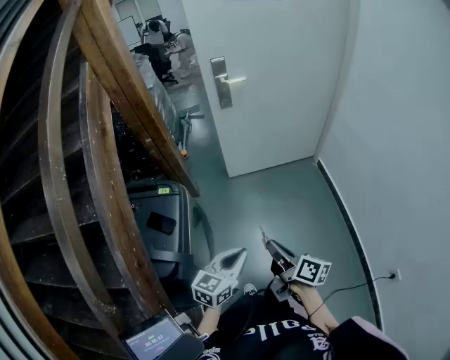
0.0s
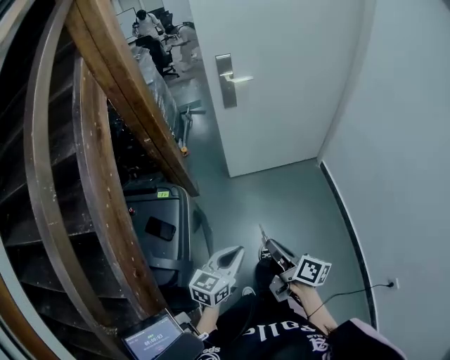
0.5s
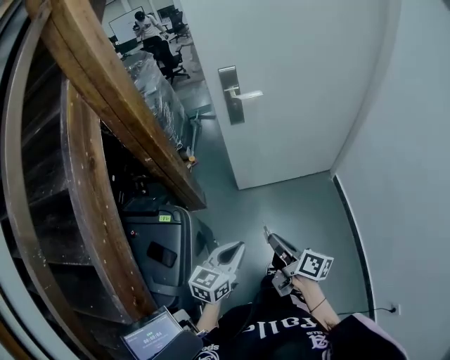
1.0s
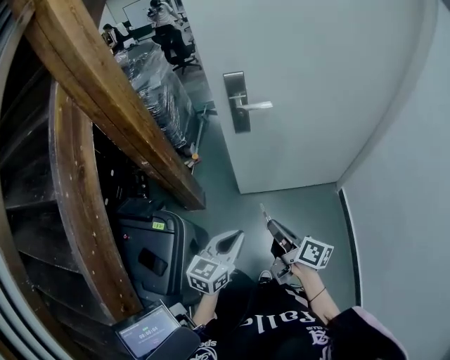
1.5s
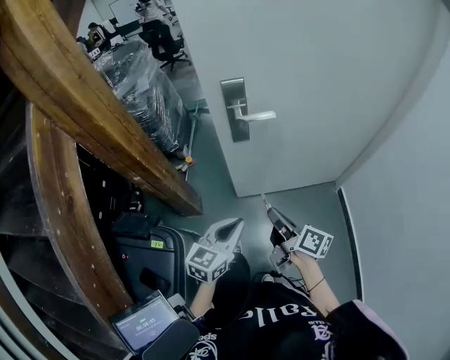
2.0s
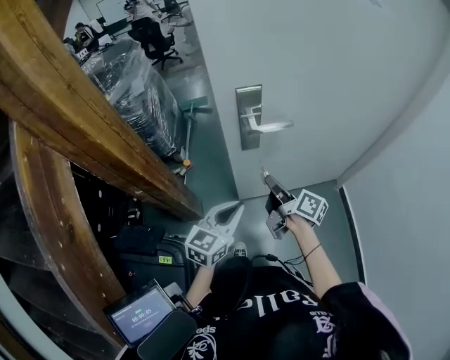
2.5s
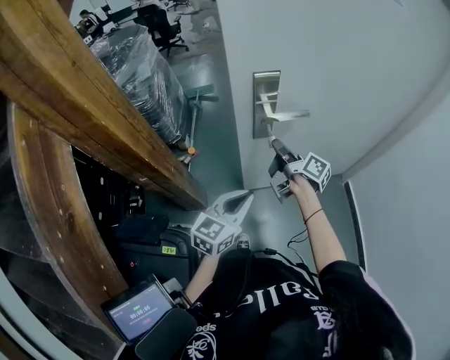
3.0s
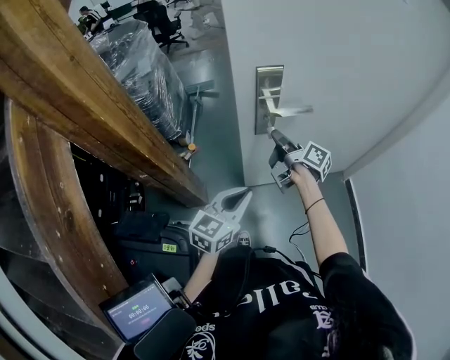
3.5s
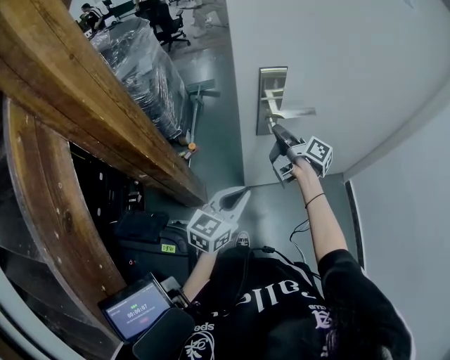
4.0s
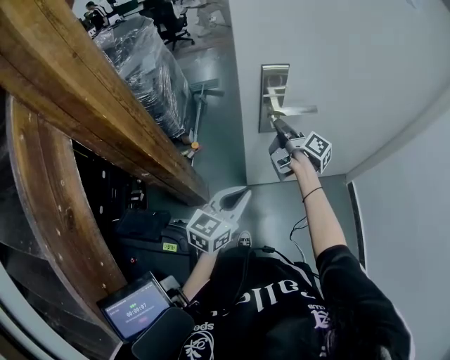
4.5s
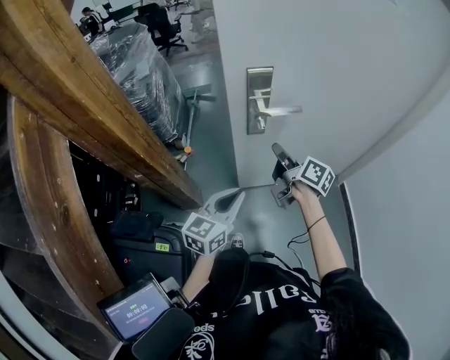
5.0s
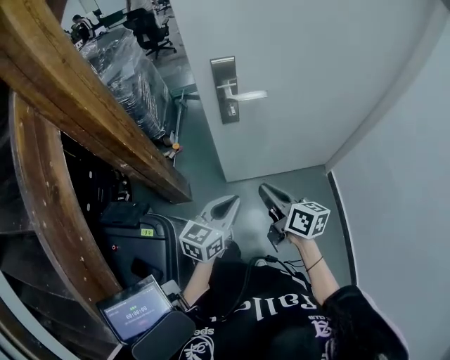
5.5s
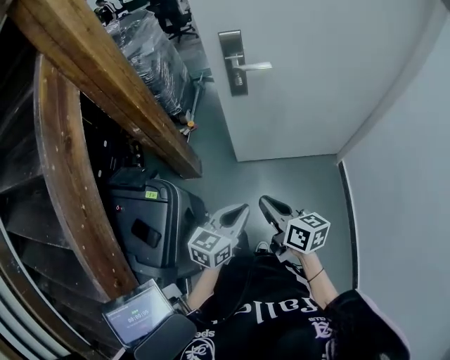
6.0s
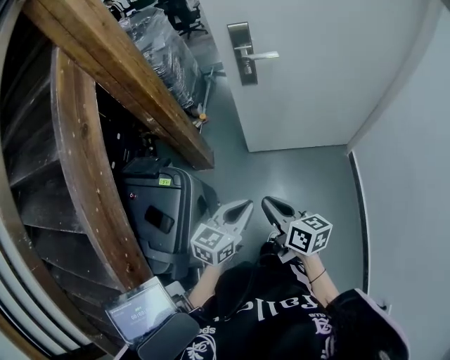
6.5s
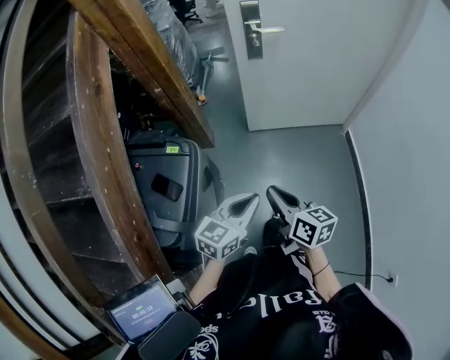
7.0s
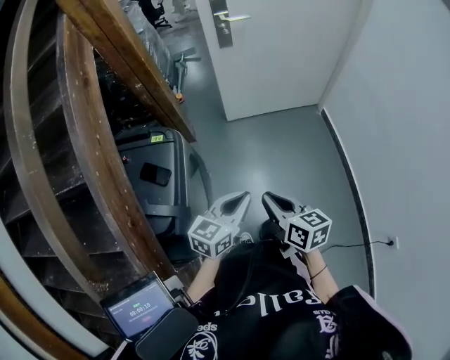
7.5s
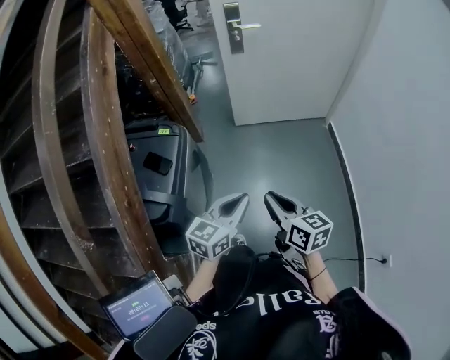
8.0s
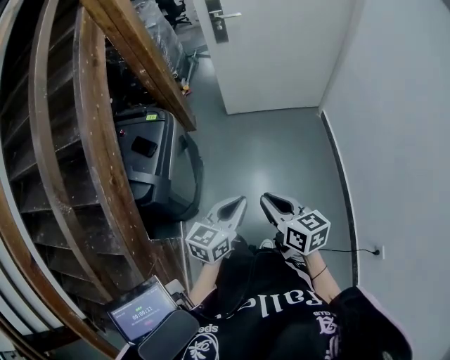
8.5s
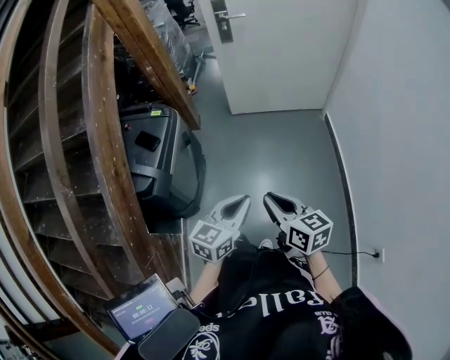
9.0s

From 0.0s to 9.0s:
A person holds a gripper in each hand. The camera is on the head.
From 0.0s to 2.0s: The two grippers travel together, forward, roughly 50 cm.
From 2.0s to 4.5s: The left gripper shifts approximately 15 cm forward and to the left. Meanwhile the right gripper goes approximately 30 cm forward, and swivels approximately 20 degrees.
From 4.5s to 7.0s: The pair of grippers is taken backward, roughly 50 cm. The right gripper rotates around the line of its fingers by some 40 degrees, counterclockwise from behind.
From 7.0s to 9.0s: Both grippers travel together backward and to the right, approximately 30 cm.

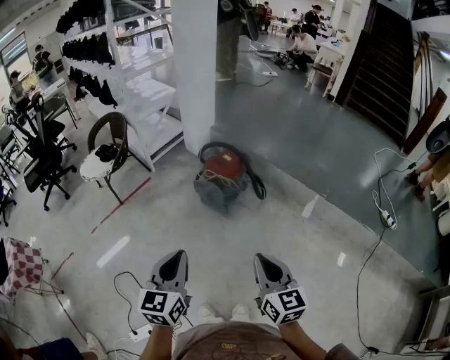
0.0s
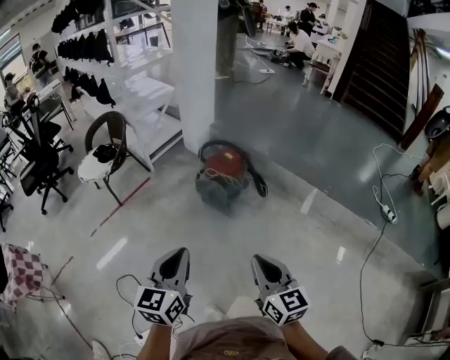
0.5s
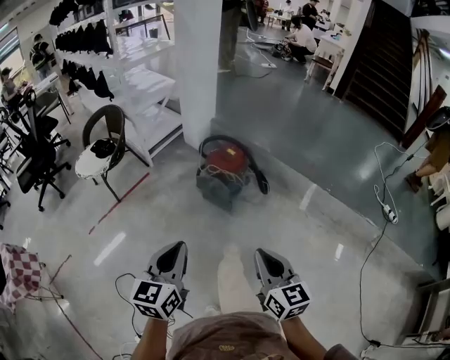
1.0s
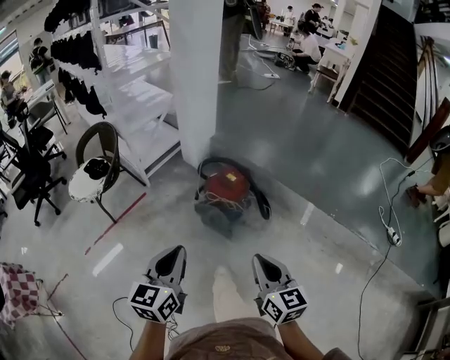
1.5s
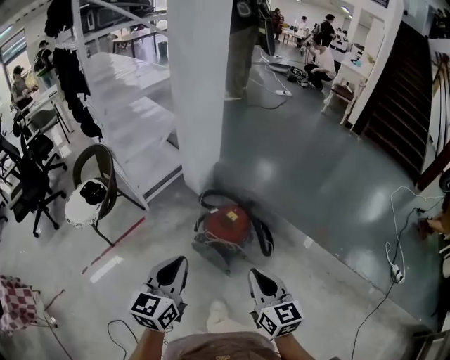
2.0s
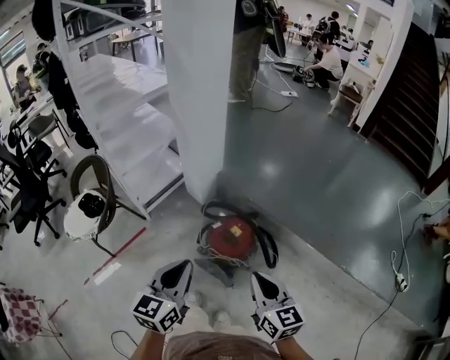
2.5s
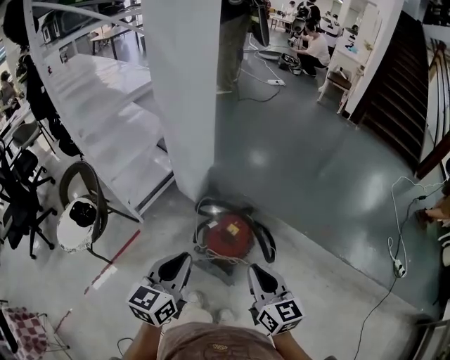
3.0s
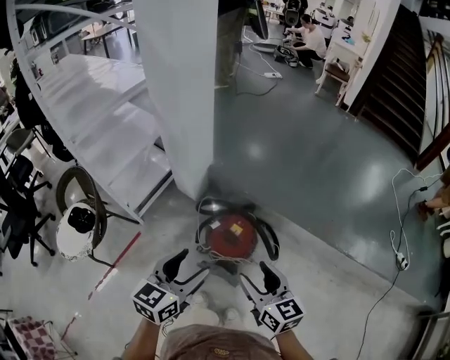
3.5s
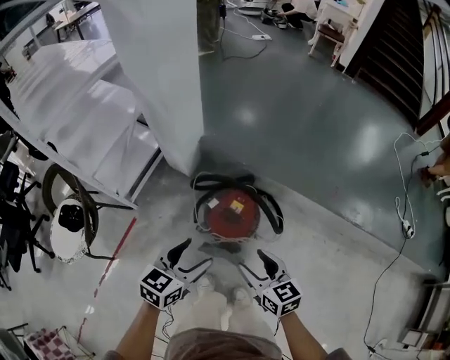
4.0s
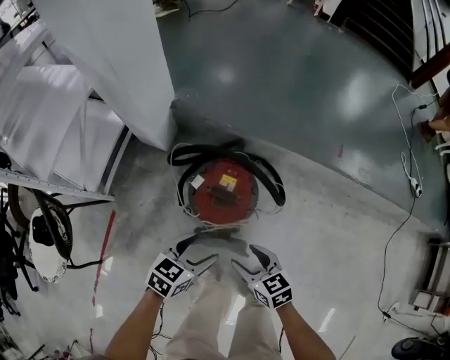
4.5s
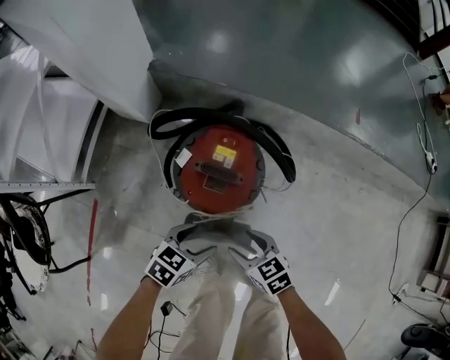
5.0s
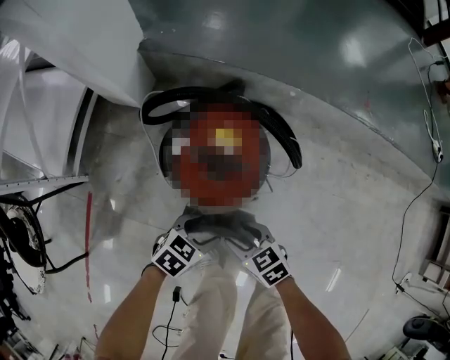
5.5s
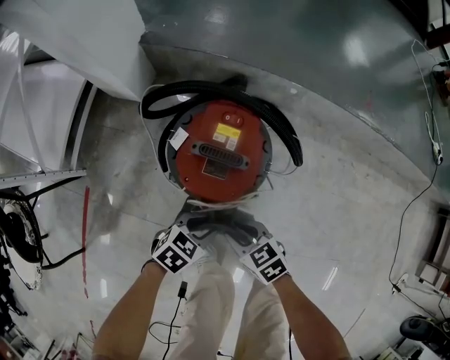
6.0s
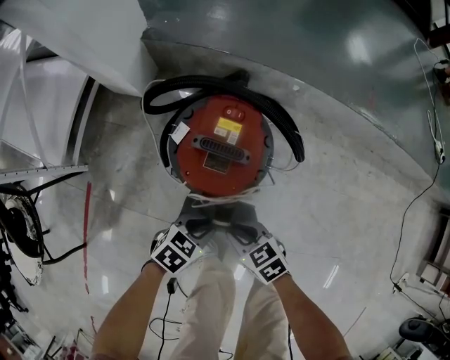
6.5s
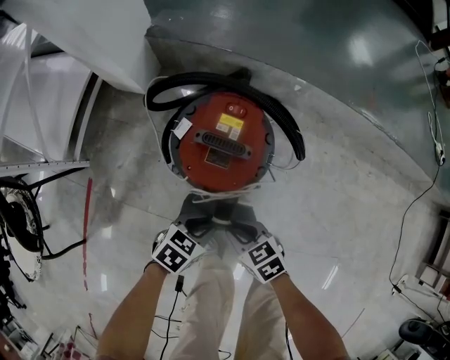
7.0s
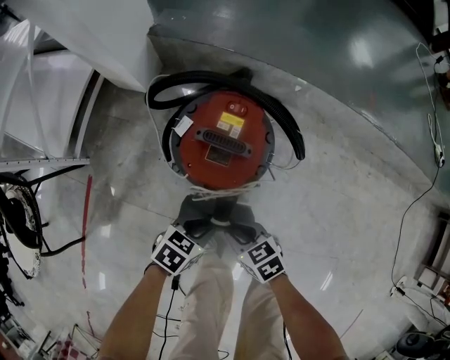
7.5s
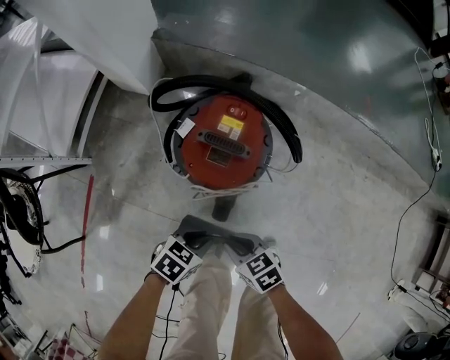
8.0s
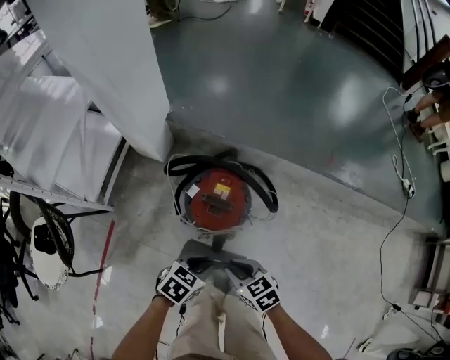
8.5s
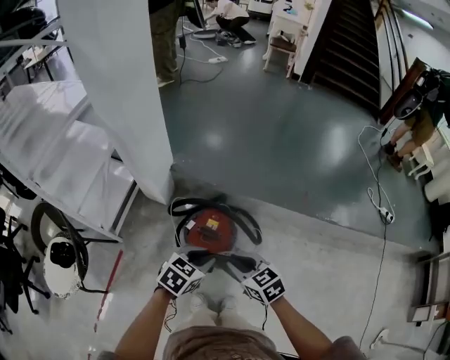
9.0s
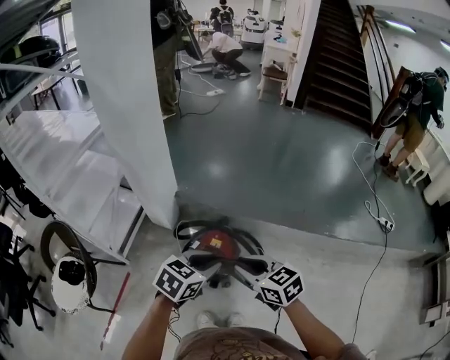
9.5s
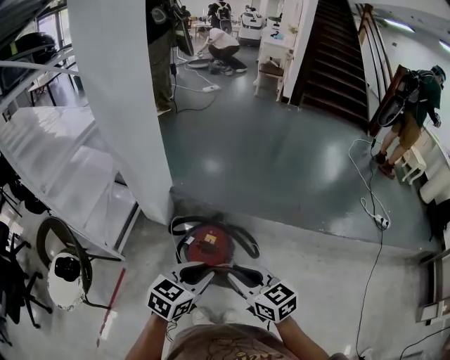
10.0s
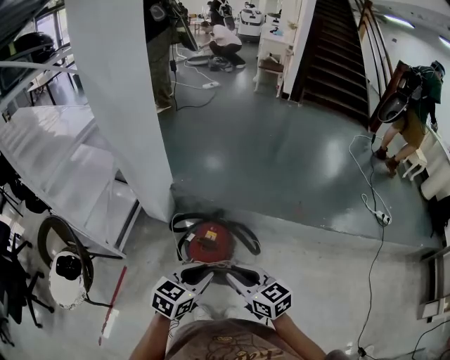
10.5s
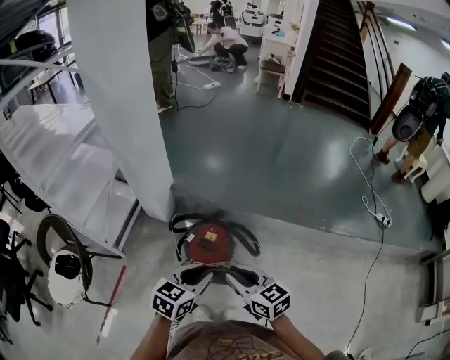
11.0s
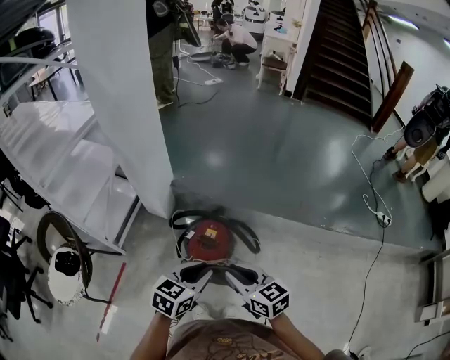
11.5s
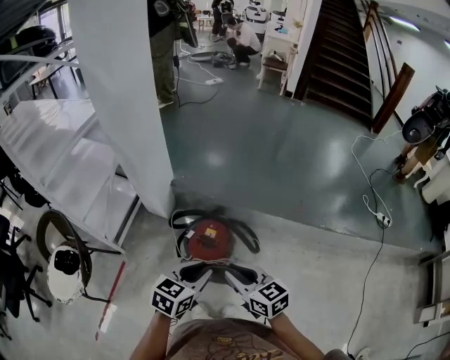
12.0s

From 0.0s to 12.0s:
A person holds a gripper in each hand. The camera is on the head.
From 0.0s to 2.0s: Both grippers move forward, roughly 40 cm.
From 2.0s to 4.0s: The right gripper moves forward, downward and to the left, roughly 25 cm, and opens up, while the left gripper shifts about 25 cm forward and downward, rotates some 40 degrees, and opens.
From 4.0s to 6.0s: The grippers both shift downward by approximately 40 cm. The right gripper changes its angle by some 30 degrees, and closes up; the left gripper changes its angle by approximately 40 degrees, and closes up.
From 6.0s to 8.0s: The right gripper ends up approximately 5 cm from where it was. The left gripper changes place by approximately 5 cm.
From 8.0s to 10.0s: The two grippers go about 50 cm upward. The right gripper swivels some 40 degrees. The left gripper swivels some 40 degrees.
From 10.0s to 12.0s: The grippers make only small movements.

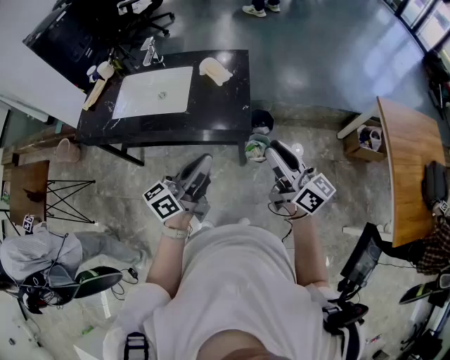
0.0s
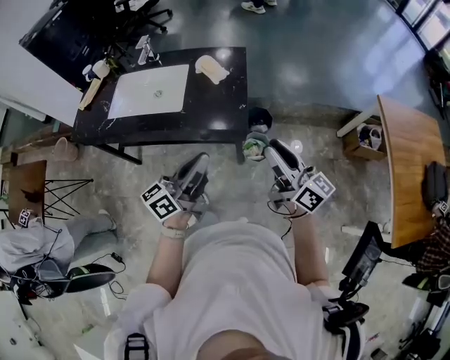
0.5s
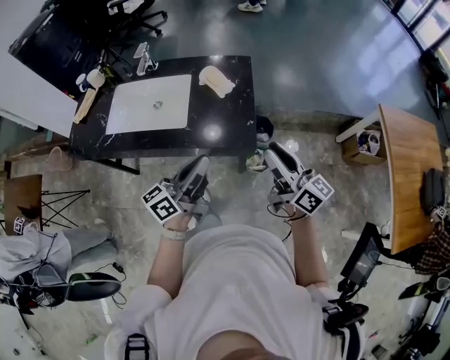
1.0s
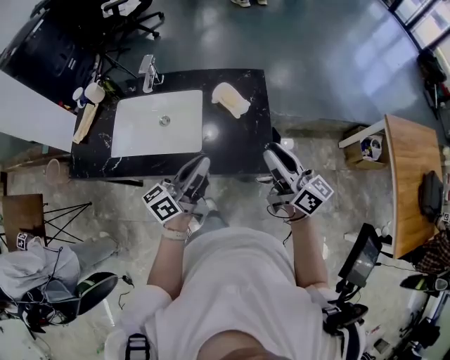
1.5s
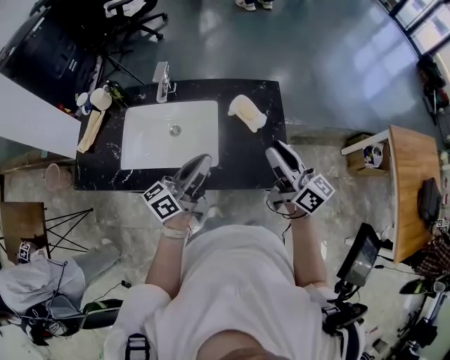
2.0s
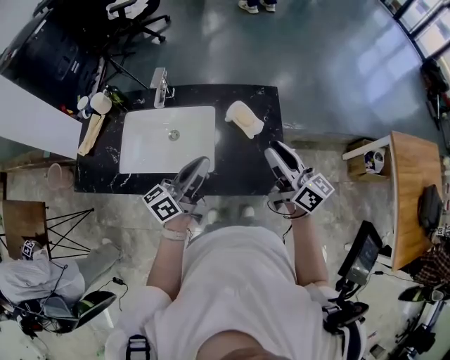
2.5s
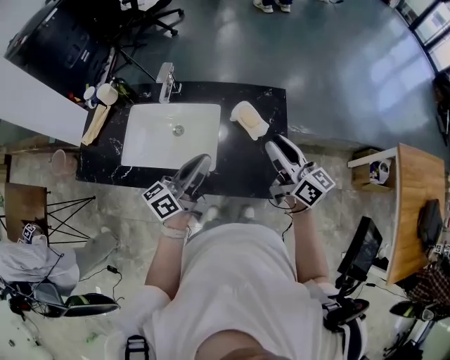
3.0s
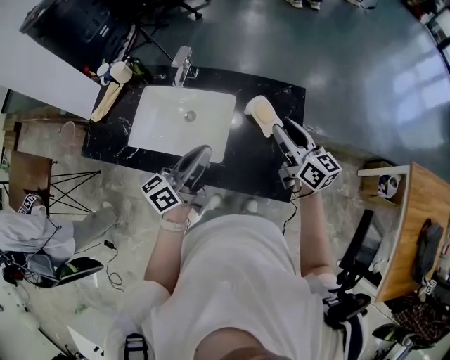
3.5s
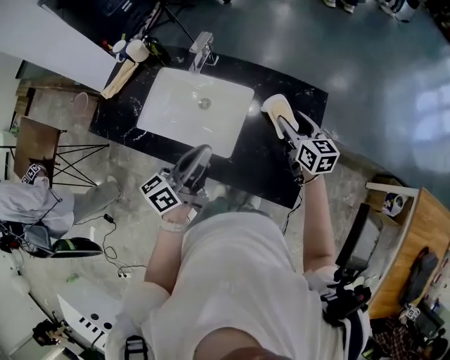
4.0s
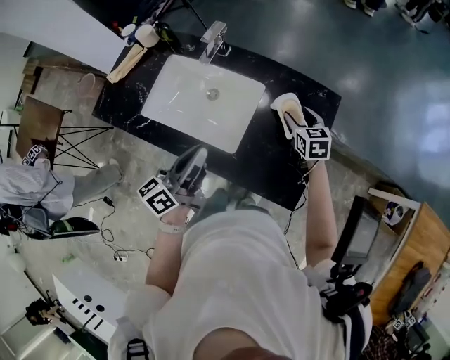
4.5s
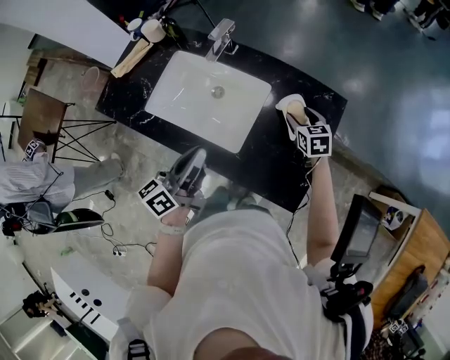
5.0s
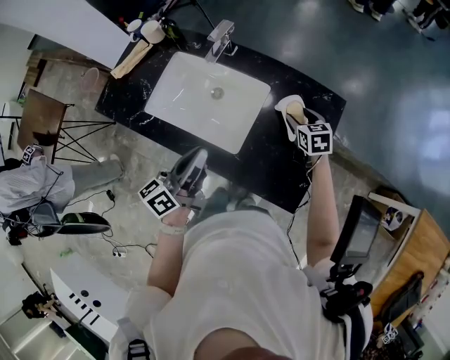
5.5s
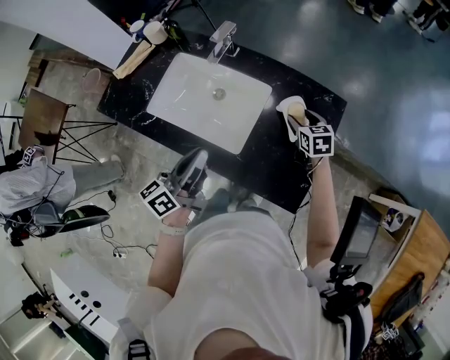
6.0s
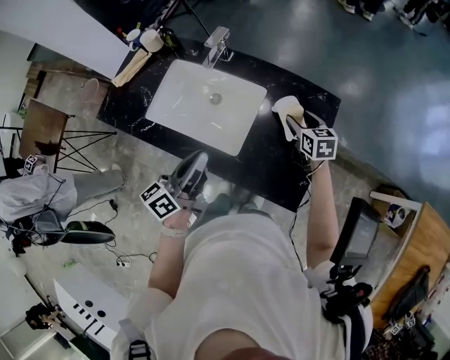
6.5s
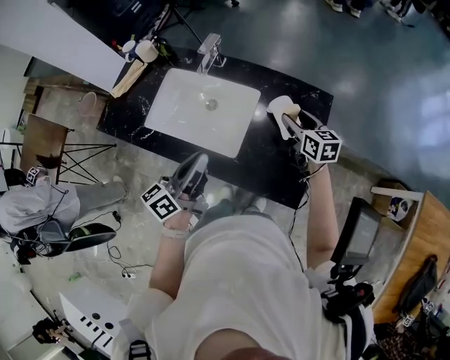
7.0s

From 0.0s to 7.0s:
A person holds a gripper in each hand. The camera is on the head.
From 0.0s to 2.0s: Both grippers move forward and to the left, about 35 cm.
From 2.0s to 3.5s: The right gripper moves forward, approximately 10 cm.
From 3.5s to 5.0s: The left gripper shifts approximately 5 cm to the left, and rotates roughly 20 degrees. Meanwhile the right gripper goes approximately 25 cm downward and forward, and points its fingers some 40 degrees further downward.
From 5.0s to 7.0s: The right gripper goes some 10 cm upward, and swivels approximately 20 degrees.
